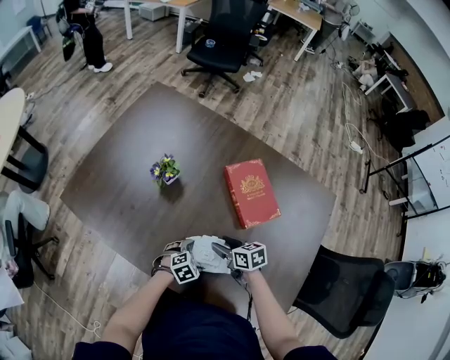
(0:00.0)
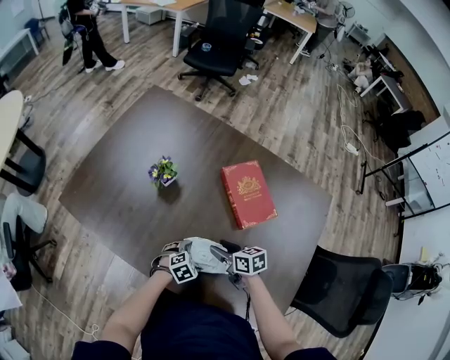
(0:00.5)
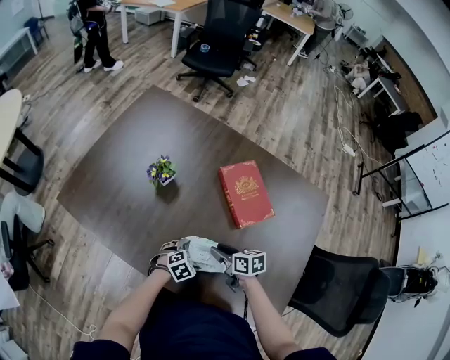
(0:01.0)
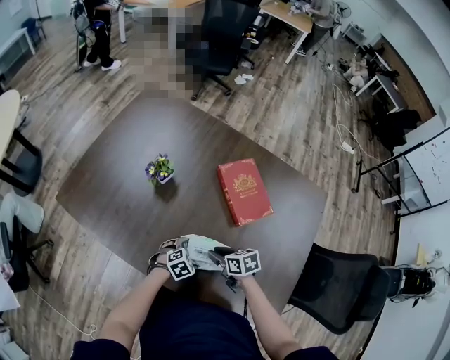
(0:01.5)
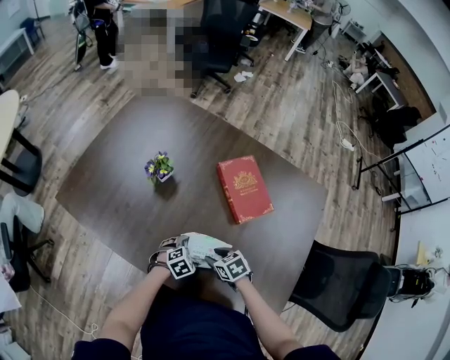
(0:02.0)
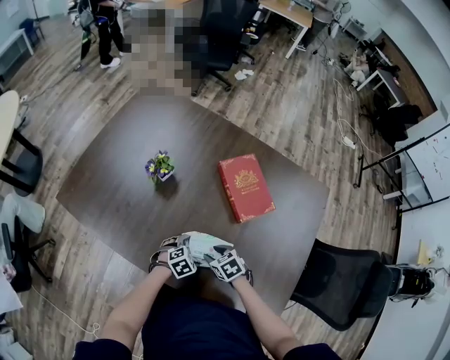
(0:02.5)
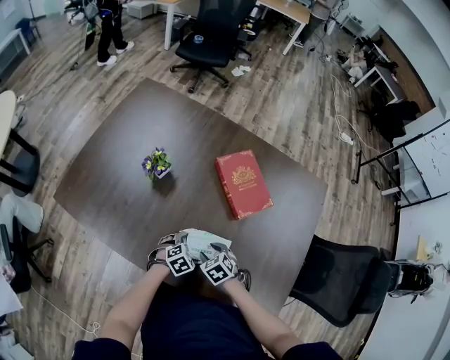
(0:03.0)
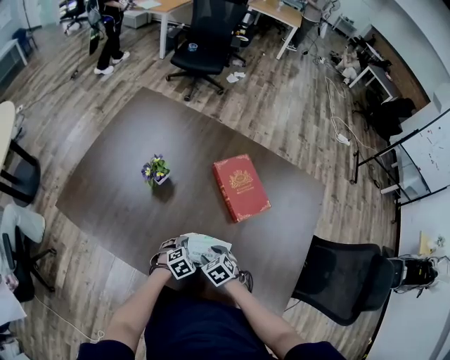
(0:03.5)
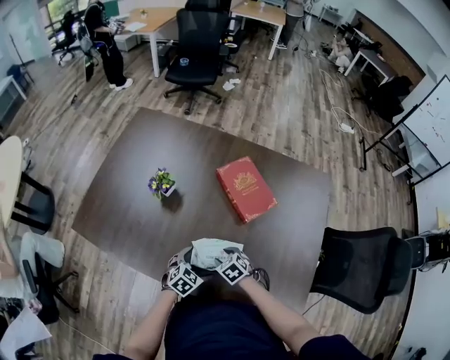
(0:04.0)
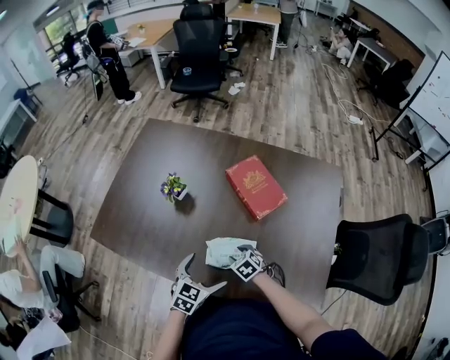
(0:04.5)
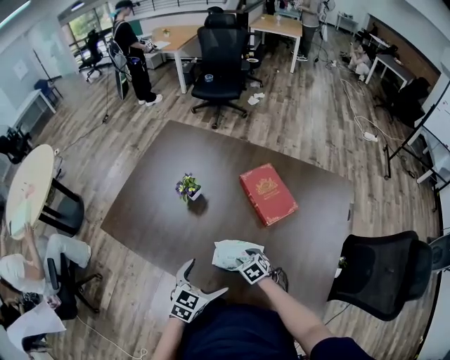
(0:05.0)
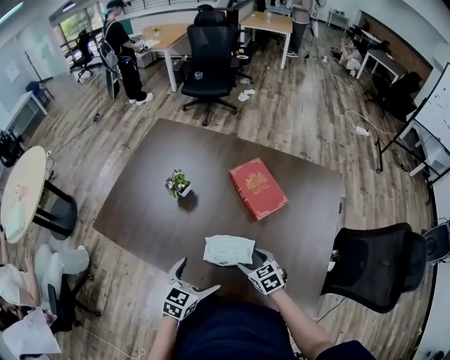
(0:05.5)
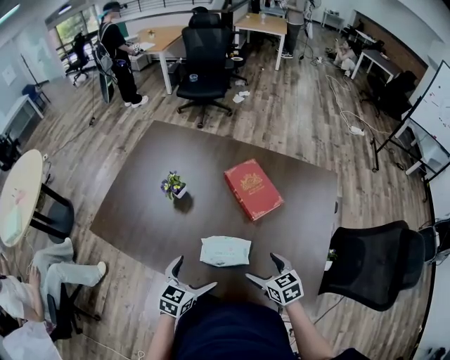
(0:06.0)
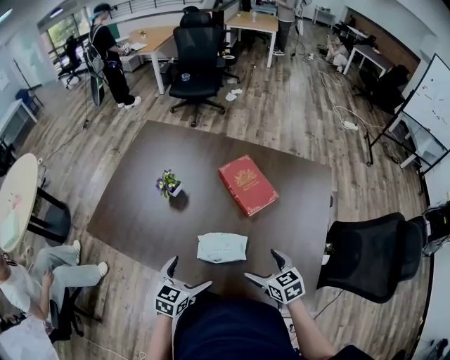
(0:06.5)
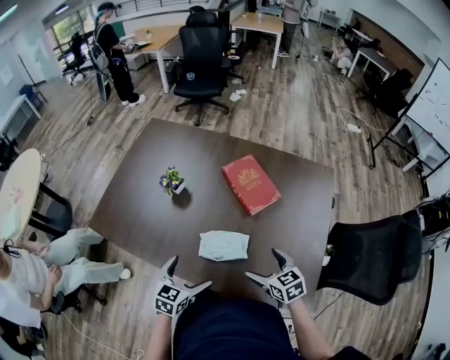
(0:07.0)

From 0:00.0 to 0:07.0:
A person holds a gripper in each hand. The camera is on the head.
From 0:00.0 to 0:02.0: The right gripper shifts by some 10 cm, and turns by some 20 degrees.
From 0:02.0 to 0:03.5: The grippers move only a little.
From 0:03.5 to 0:05.0: The left gripper travels upward by roughly 20 cm, and turns by roughly 40 degrees.
From 0:05.0 to 0:07.0: The right gripper goes about 20 cm upward, to the right and backward, rotates roughly 30 degrees, and opens its fingers.

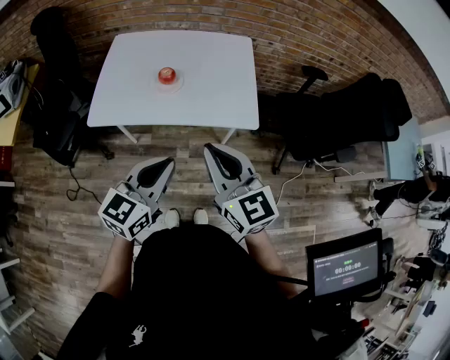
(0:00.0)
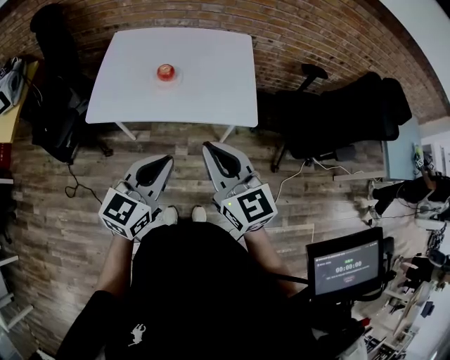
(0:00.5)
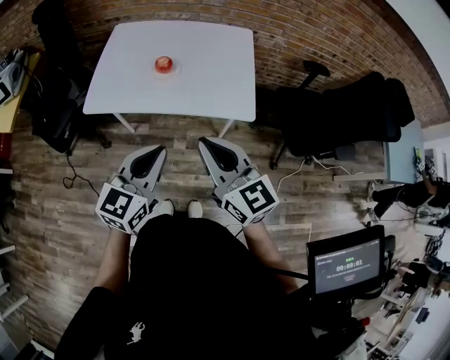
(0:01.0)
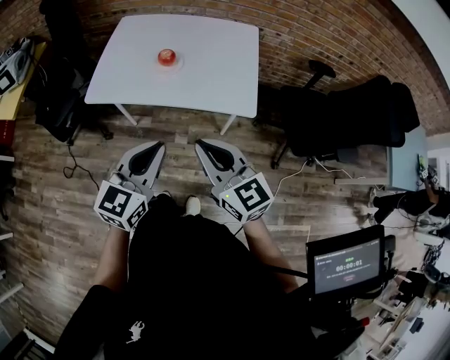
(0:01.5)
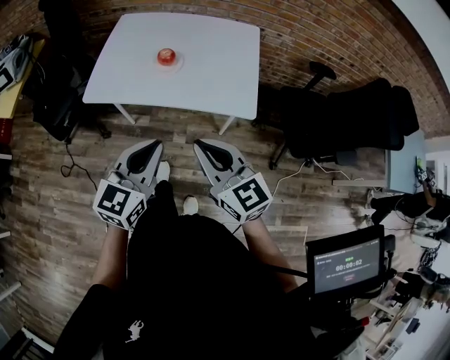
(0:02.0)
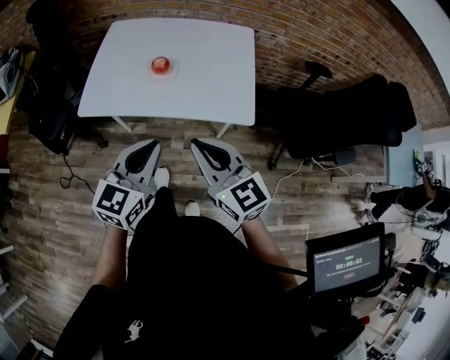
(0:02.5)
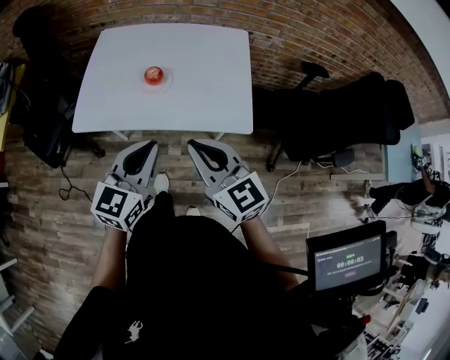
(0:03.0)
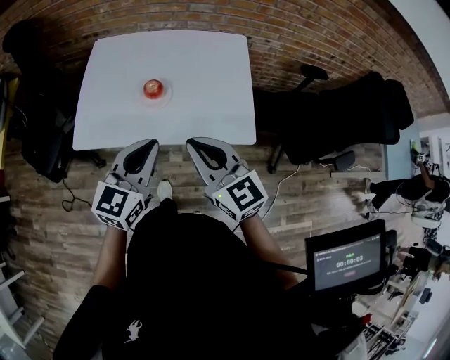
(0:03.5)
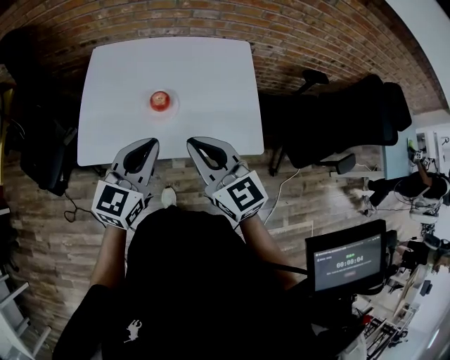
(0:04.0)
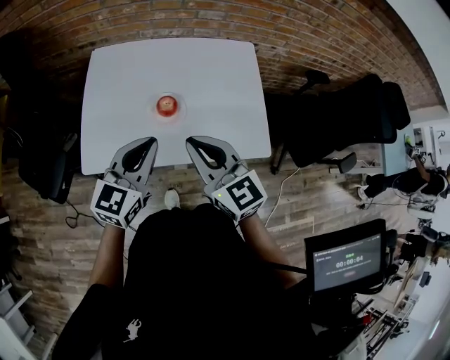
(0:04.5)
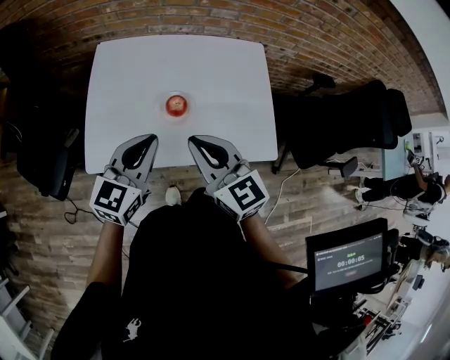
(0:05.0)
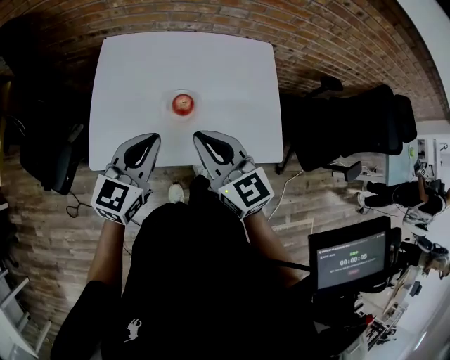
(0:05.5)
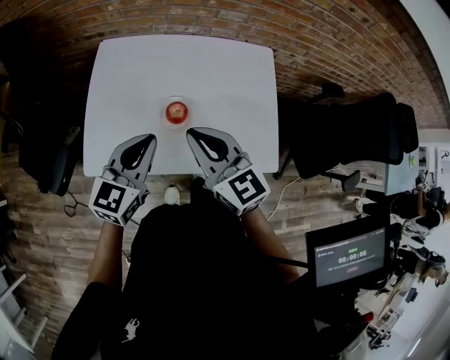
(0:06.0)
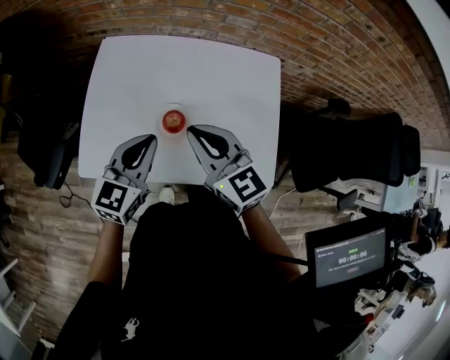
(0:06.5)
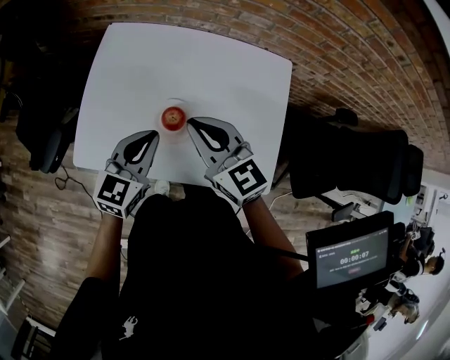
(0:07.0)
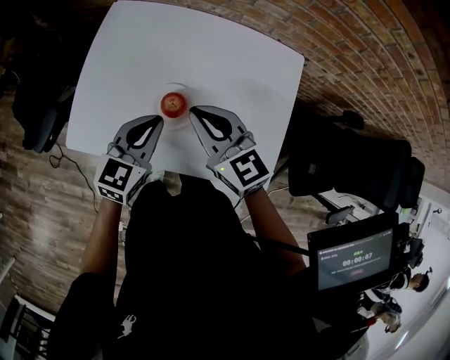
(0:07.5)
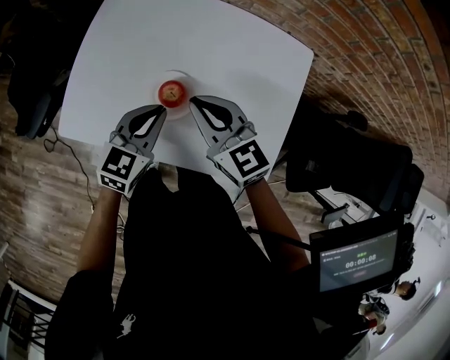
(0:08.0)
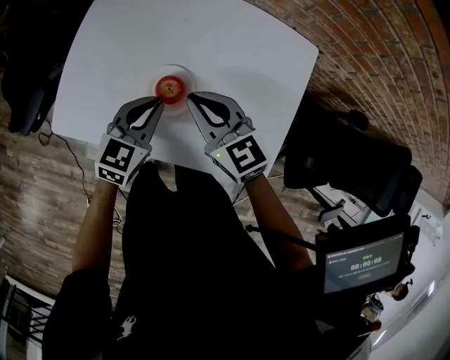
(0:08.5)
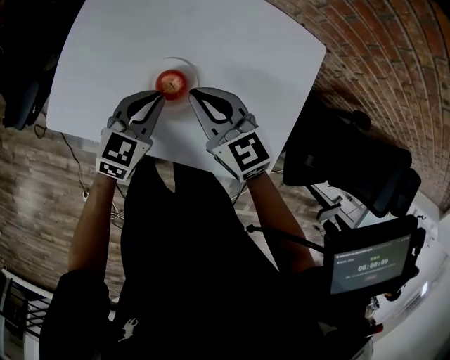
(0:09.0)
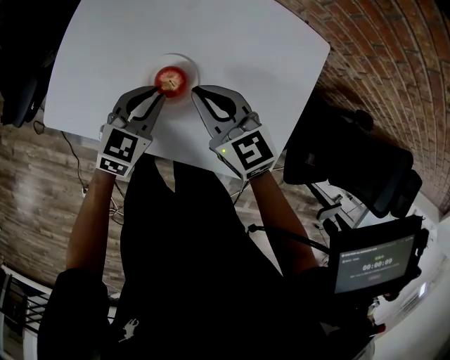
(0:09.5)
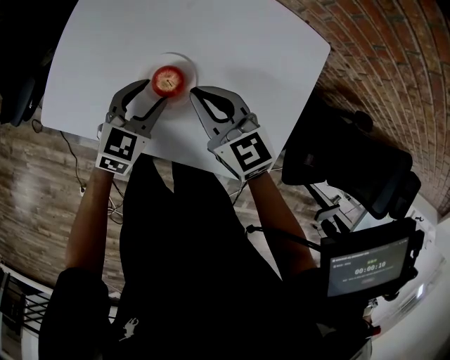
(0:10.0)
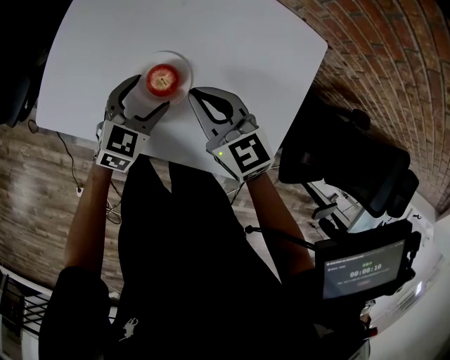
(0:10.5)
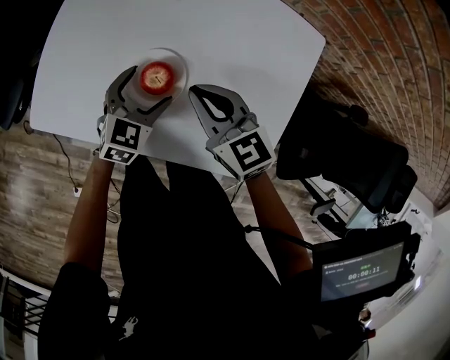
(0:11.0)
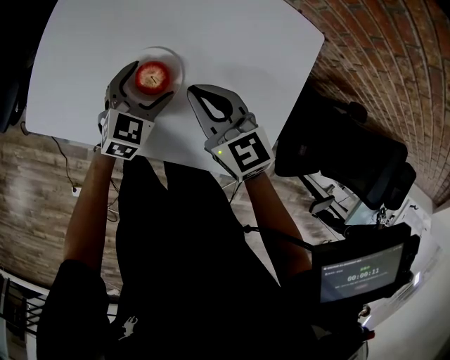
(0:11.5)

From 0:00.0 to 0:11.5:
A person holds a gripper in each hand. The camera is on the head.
From 0:00.0 to 0:02.0: The right gripper ends up about 5 cm from where it was.
From 0:02.0 to 0:04.0: Both grippers move forward, roughly 20 cm.
From 0:04.0 to 0:06.0: Both grippers move forward and to the left, some 10 cm.
From 0:06.0 to 0:07.5: The left gripper moves downward, roughly 10 cm. Meanwhile the right gripper travels forward and downward by approximately 10 cm.
From 0:07.5 to 0:09.5: The two grippers go roughly 10 cm downward.
From 0:09.5 to 0:11.5: The left gripper shifts by roughly 5 cm, and opens up.

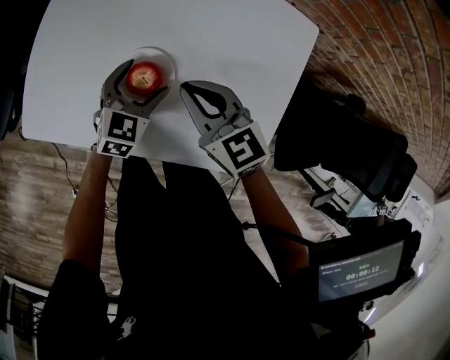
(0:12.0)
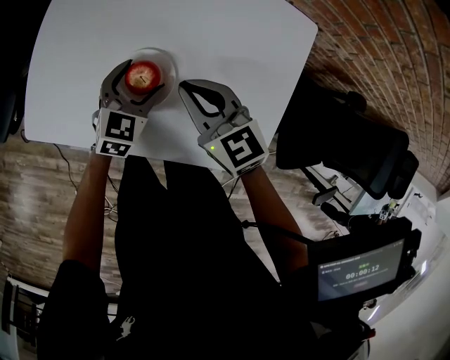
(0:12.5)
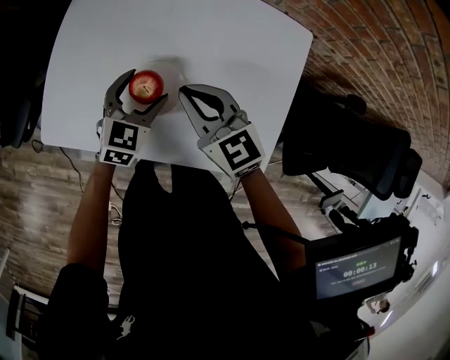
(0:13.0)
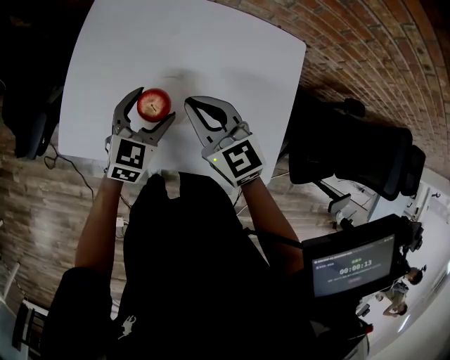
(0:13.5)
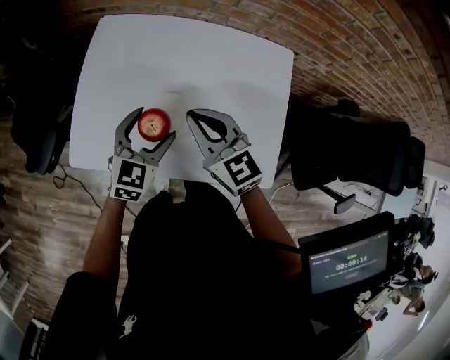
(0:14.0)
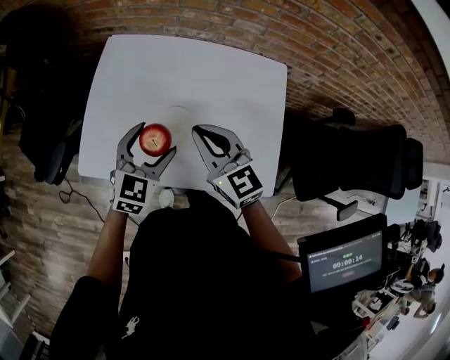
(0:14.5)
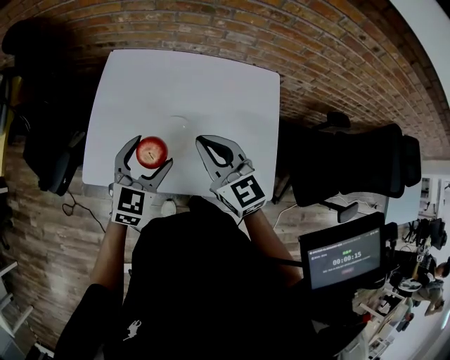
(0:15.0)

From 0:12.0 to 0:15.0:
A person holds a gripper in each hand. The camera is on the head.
From 0:12.0 to 0:13.5: The two grippers go roughly 10 cm upward.
From 0:13.5 to 0:15.0: Both grippers travel together upward and backward, roughly 10 cm.

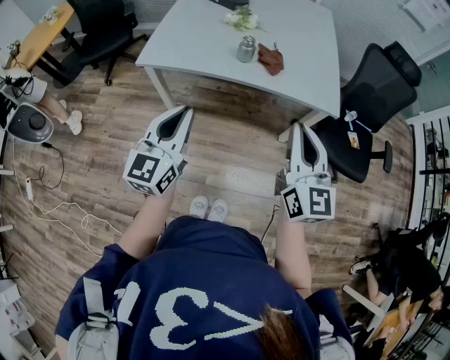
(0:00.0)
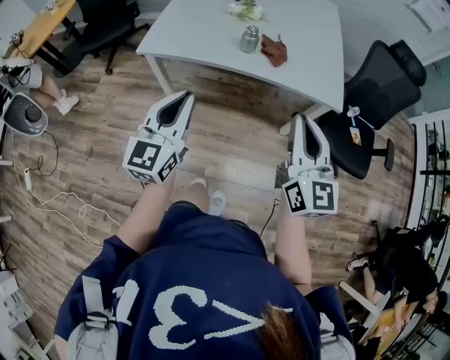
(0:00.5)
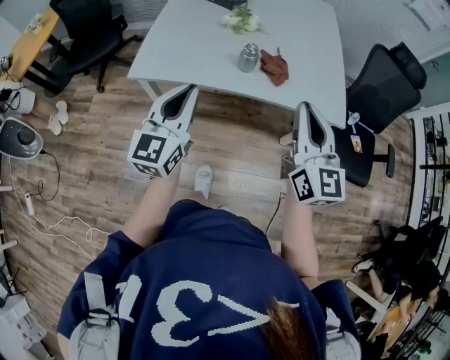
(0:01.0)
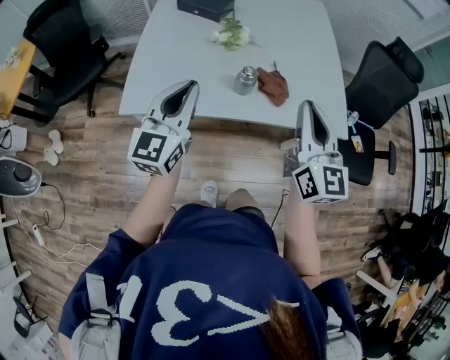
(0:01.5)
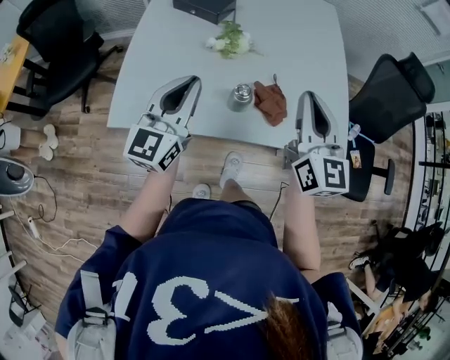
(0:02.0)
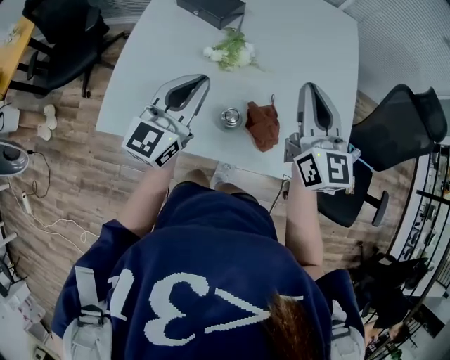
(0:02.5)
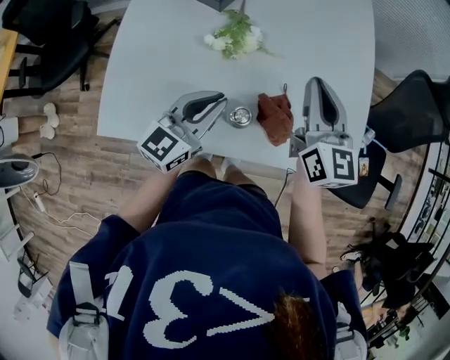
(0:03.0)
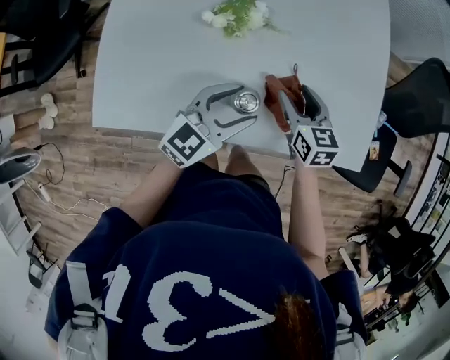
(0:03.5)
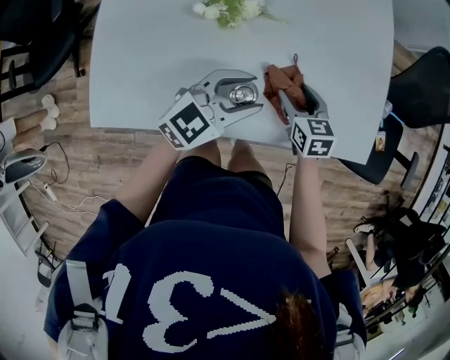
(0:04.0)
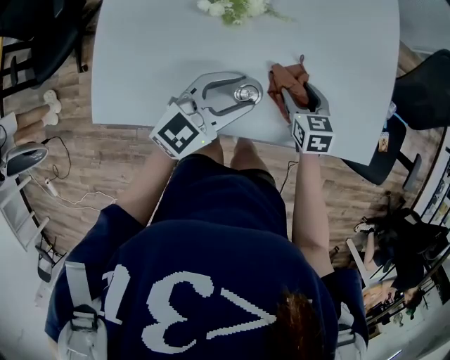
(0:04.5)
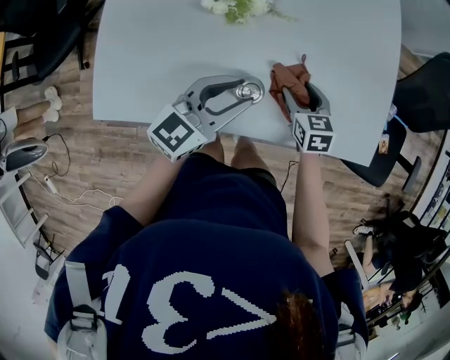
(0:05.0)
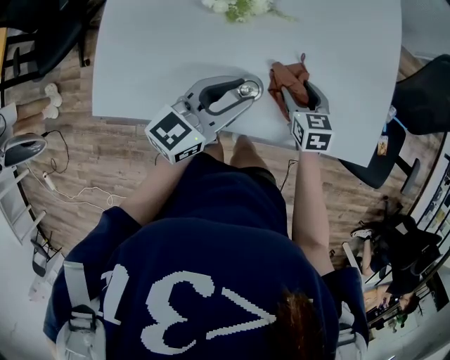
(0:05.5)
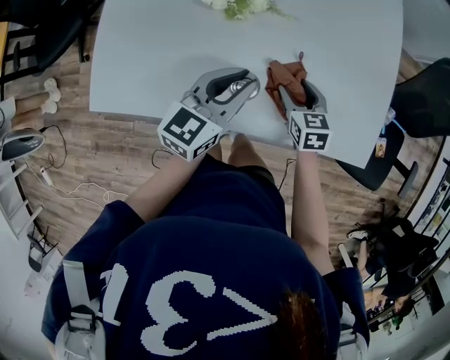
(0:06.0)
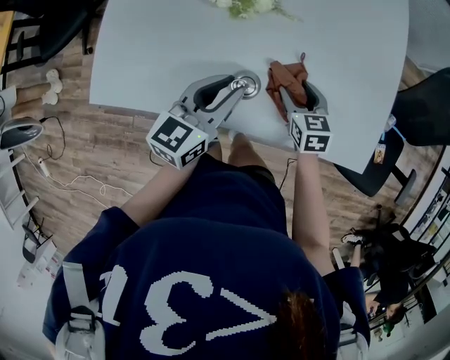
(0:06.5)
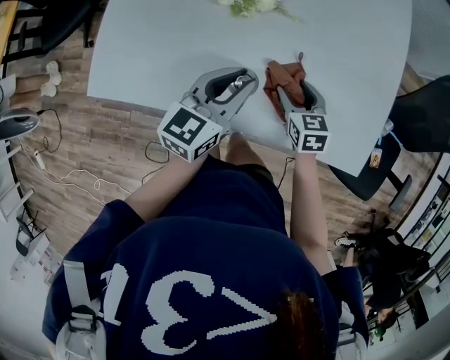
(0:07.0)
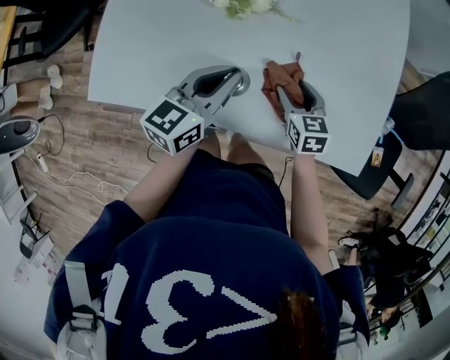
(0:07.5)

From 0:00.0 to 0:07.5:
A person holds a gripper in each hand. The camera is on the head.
From 0:00.0 to 0:02.0: Both grippers travel together forward, about 40 cm.
From 0:02.0 to 0:04.0: The left gripper is displaced downward, to the right and forward by approximately 25 cm, changes its angle by roughly 50 degrees, and opens its fingers. Meanwhile the right gripper is displaced downward by some 35 cm, points its fingers some 40 degrees further downward, and opens up.
From 0:04.0 to 0:05.5: The left gripper turns by roughly 30 degrees.
From 0:05.5 to 0:07.5: The left gripper closes its fingers.
